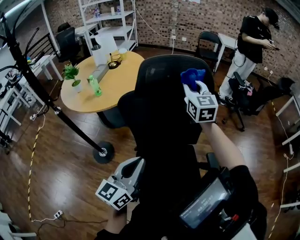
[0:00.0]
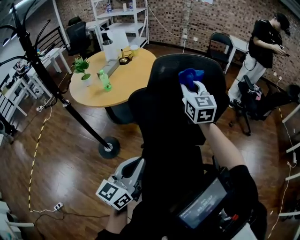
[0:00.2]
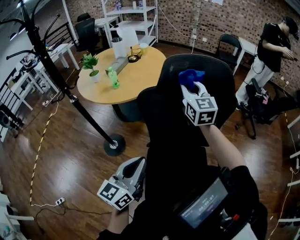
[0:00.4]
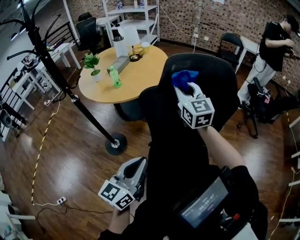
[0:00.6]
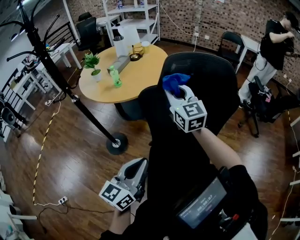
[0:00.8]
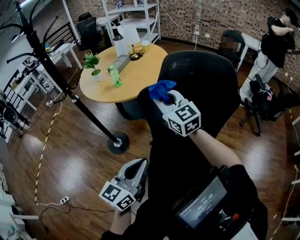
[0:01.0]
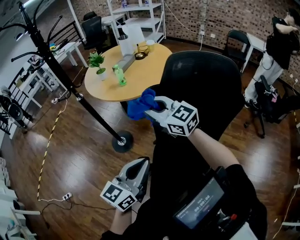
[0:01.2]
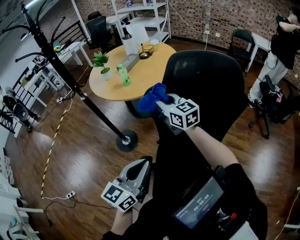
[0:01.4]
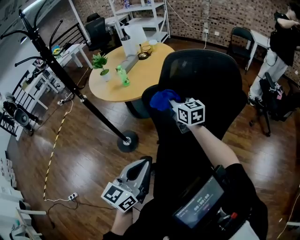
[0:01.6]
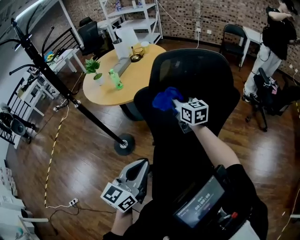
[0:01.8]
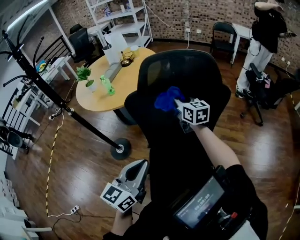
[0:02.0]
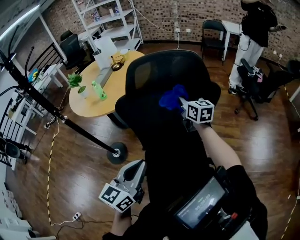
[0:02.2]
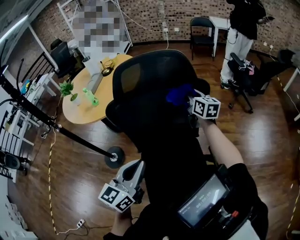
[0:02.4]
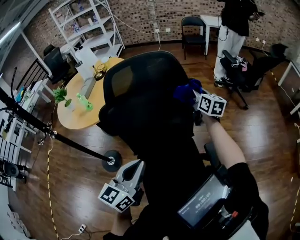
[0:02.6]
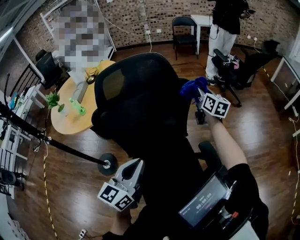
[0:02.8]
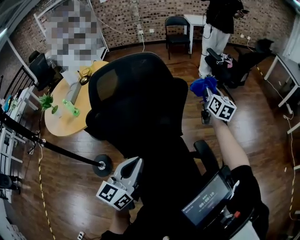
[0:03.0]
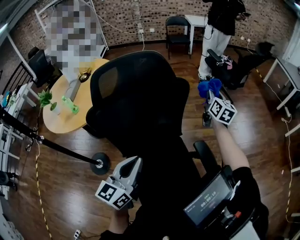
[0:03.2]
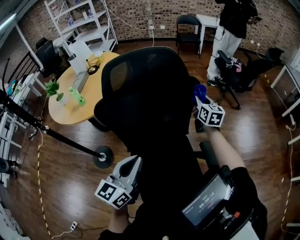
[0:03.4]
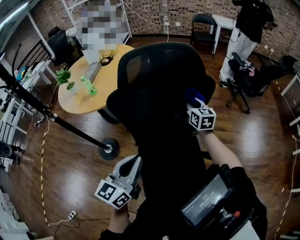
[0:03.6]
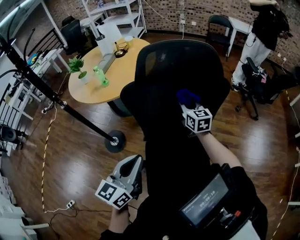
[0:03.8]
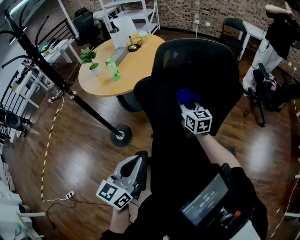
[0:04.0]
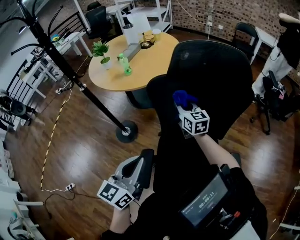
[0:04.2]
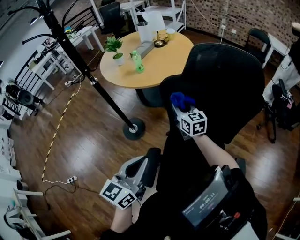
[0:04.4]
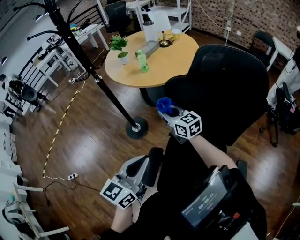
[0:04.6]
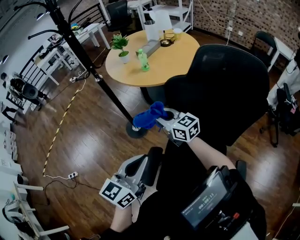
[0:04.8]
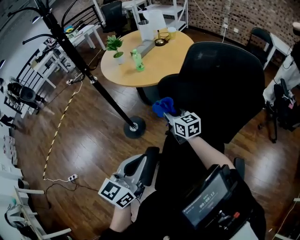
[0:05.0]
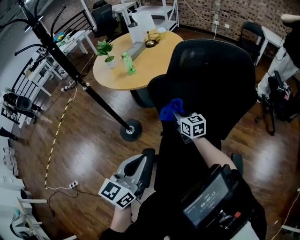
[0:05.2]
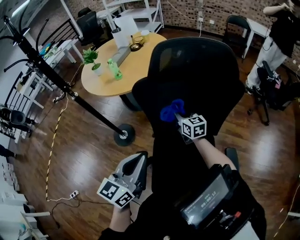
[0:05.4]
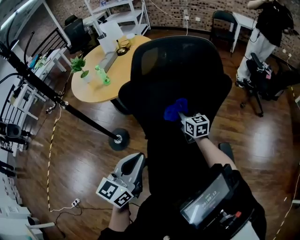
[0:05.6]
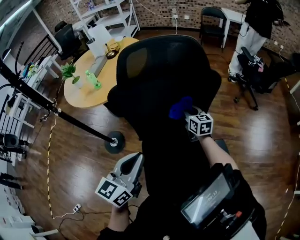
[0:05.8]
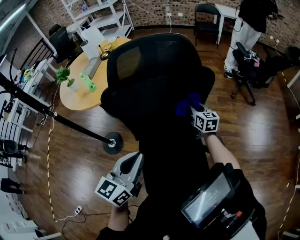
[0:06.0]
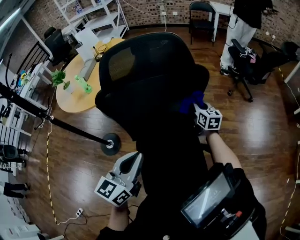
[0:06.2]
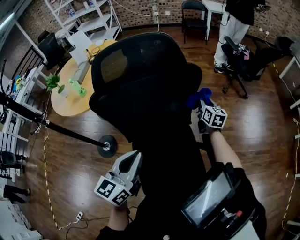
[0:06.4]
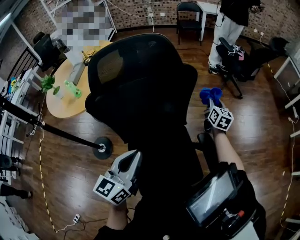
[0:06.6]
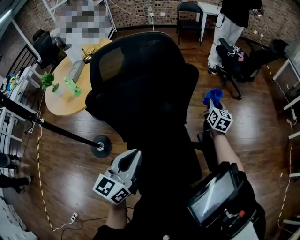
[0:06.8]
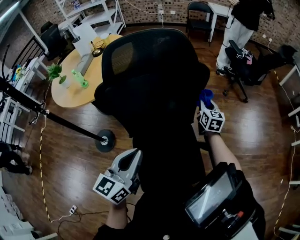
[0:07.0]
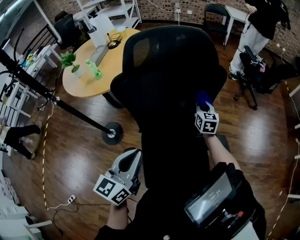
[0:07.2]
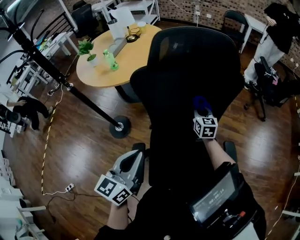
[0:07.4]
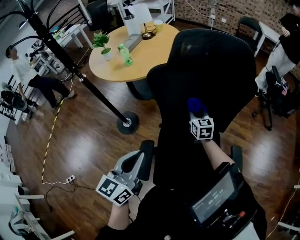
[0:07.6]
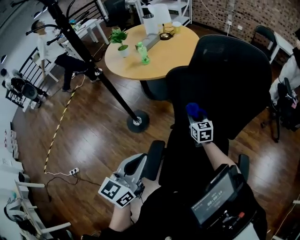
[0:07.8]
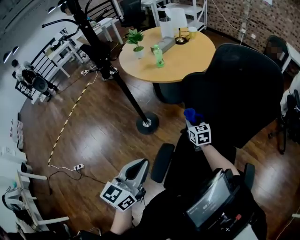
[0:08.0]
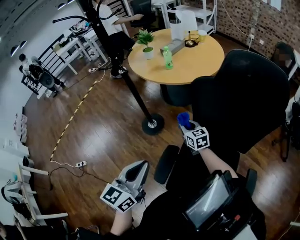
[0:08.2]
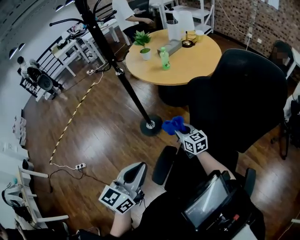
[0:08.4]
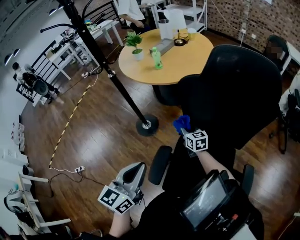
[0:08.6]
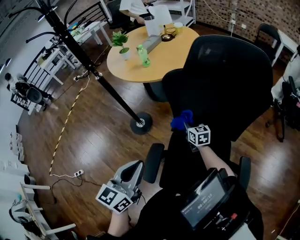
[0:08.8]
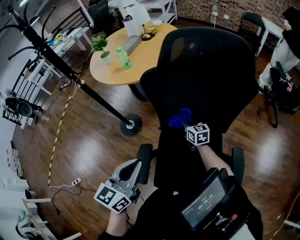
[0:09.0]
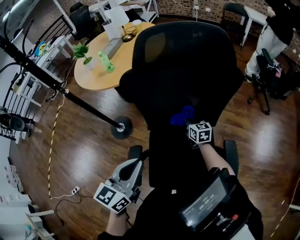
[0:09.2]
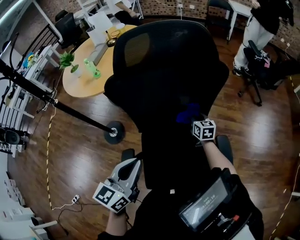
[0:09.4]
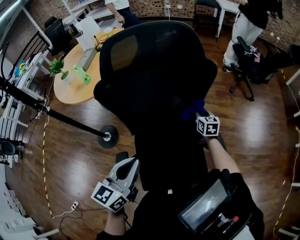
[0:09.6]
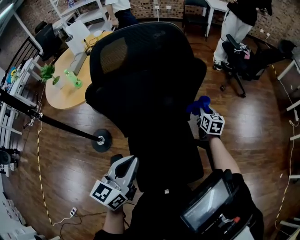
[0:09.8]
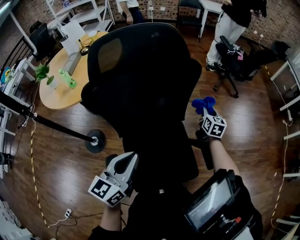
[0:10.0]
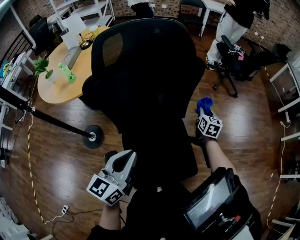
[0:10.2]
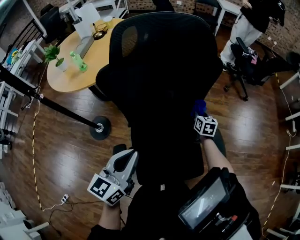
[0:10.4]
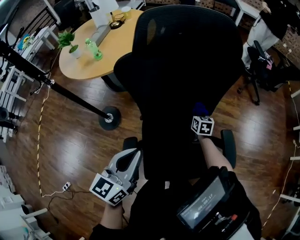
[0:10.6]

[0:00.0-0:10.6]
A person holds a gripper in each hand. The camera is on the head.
0:00.0 to 0:01.6: The right gripper moves about 25 cm, and changes its angle by roughly 40 degrees.
0:01.6 to 0:03.0: The right gripper changes place by about 50 cm, and swivels some 60 degrees; the left gripper ends up roughly 15 cm from where it was, and swivels roughly 20 degrees.
0:03.0 to 0:04.6: The left gripper changes place by about 20 cm, and changes its angle by approximately 30 degrees; the right gripper ends up roughly 60 cm from where it was, and rotates some 80 degrees.
0:04.6 to 0:06.0: The right gripper ends up approximately 40 cm from where it was, and rotates roughly 50 degrees. Meanwhile the left gripper shifts by approximately 15 cm, and swivels approximately 20 degrees.
0:06.0 to 0:07.6: The left gripper changes place by roughly 10 cm, while the right gripper ends up roughly 20 cm from where it was.
0:07.6 to 0:09.0: The right gripper moves downward, approximately 5 cm.
0:09.0 to 0:10.6: The right gripper changes its angle by approximately 30 degrees.

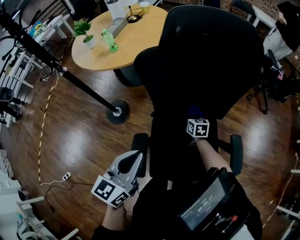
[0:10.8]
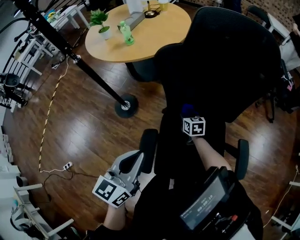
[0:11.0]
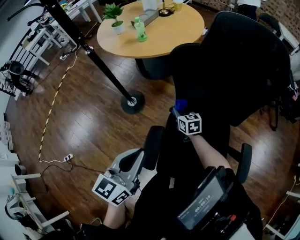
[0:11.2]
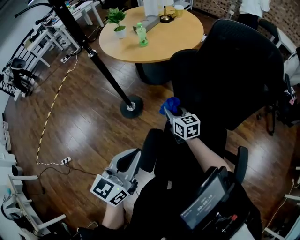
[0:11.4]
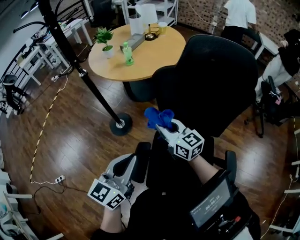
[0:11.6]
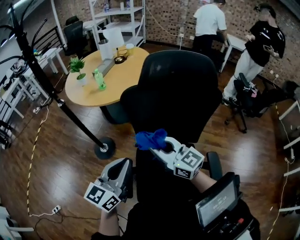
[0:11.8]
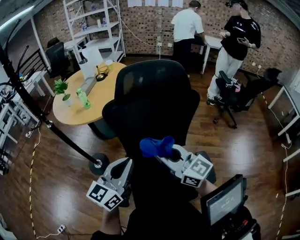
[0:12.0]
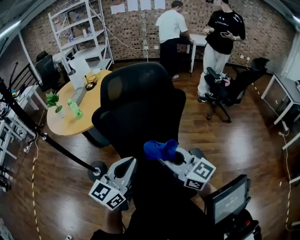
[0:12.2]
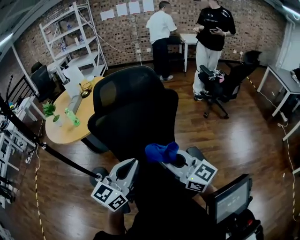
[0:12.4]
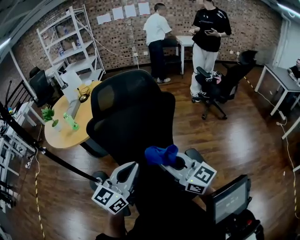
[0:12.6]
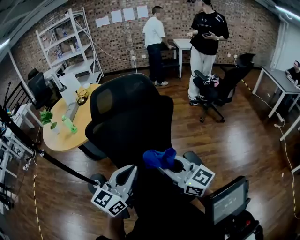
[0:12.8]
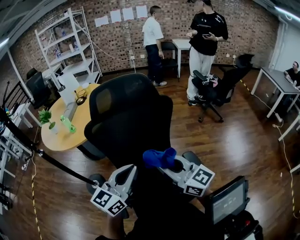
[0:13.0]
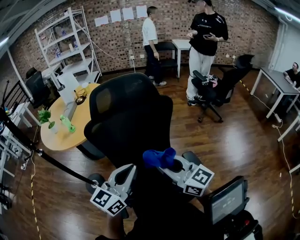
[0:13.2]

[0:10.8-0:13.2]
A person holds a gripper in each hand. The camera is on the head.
0:10.8 to 0:12.0: The left gripper is displaced upward and to the right by roughly 10 cm, and changes its angle by roughly 20 degrees, while the right gripper is displaced upward and backward by about 40 cm, and tips its fingers upward by some 50 degrees.
0:12.0 to 0:13.2: The two grippers go about 10 cm to the right.

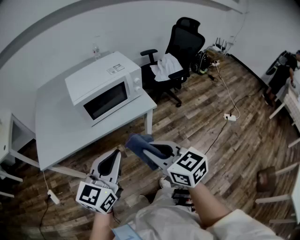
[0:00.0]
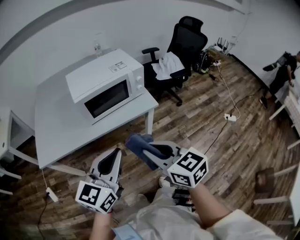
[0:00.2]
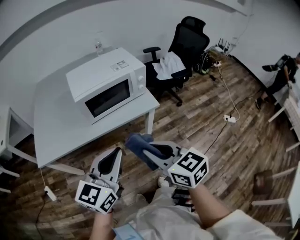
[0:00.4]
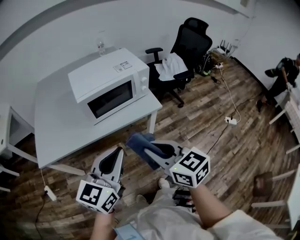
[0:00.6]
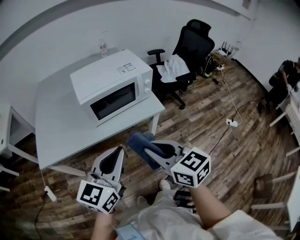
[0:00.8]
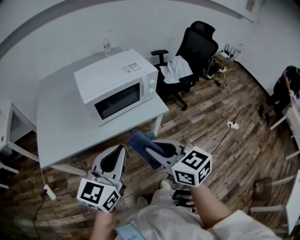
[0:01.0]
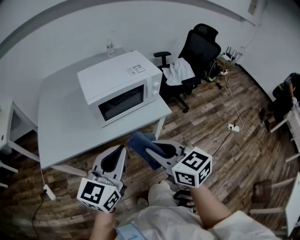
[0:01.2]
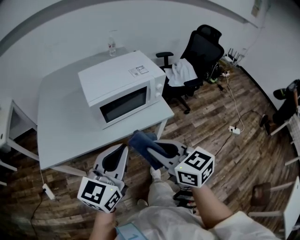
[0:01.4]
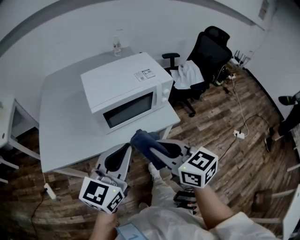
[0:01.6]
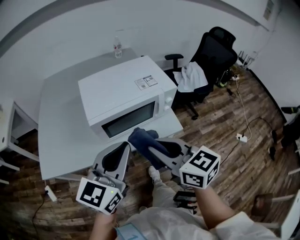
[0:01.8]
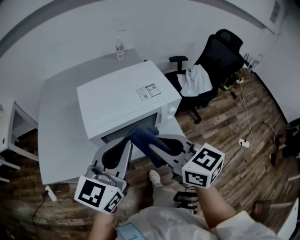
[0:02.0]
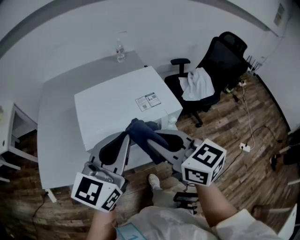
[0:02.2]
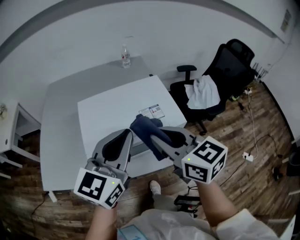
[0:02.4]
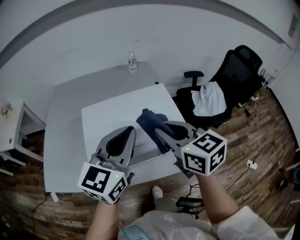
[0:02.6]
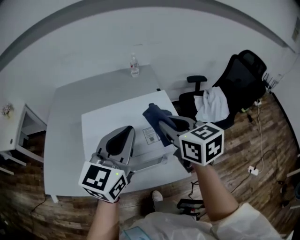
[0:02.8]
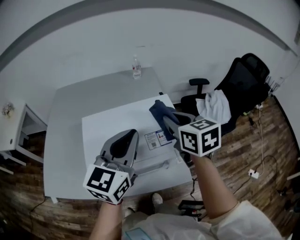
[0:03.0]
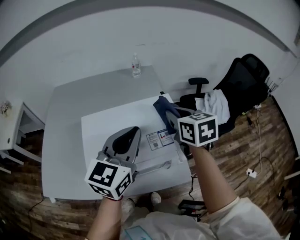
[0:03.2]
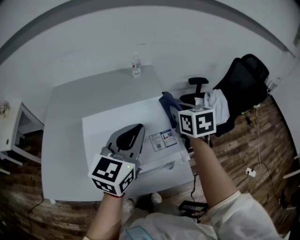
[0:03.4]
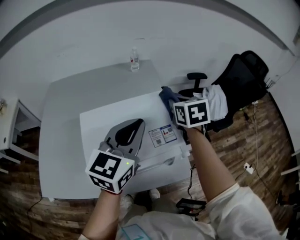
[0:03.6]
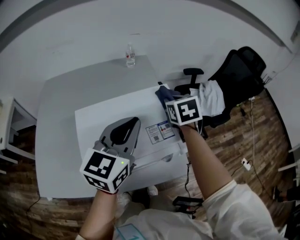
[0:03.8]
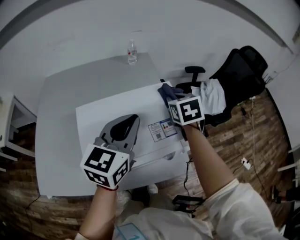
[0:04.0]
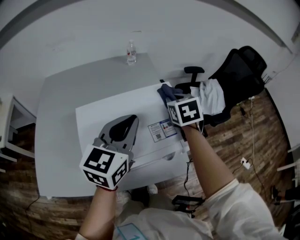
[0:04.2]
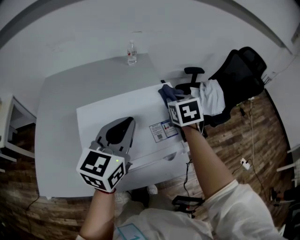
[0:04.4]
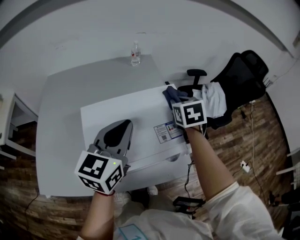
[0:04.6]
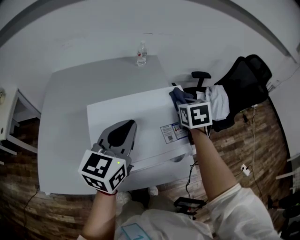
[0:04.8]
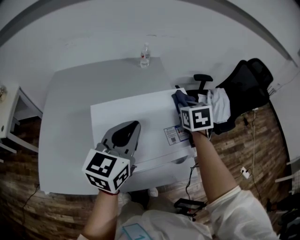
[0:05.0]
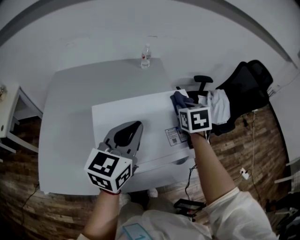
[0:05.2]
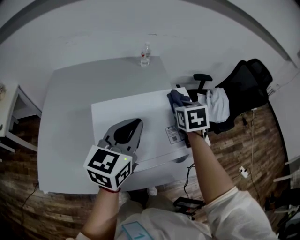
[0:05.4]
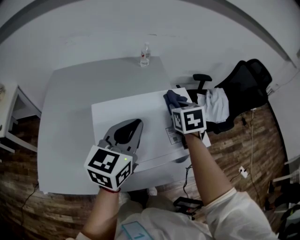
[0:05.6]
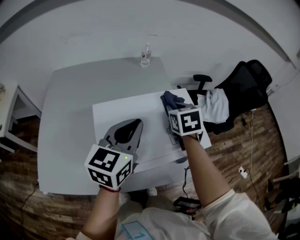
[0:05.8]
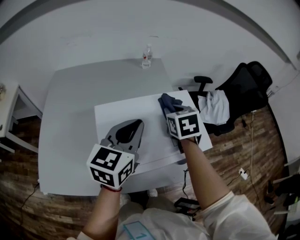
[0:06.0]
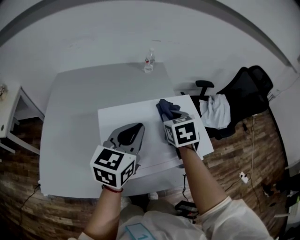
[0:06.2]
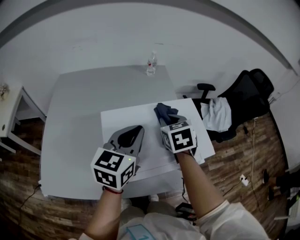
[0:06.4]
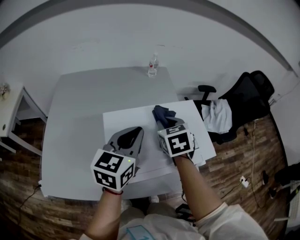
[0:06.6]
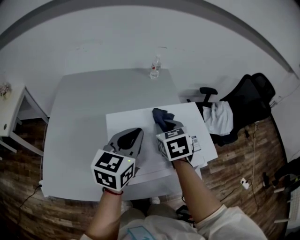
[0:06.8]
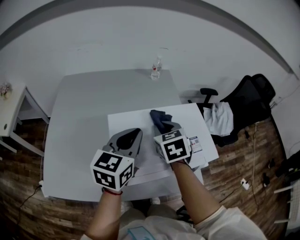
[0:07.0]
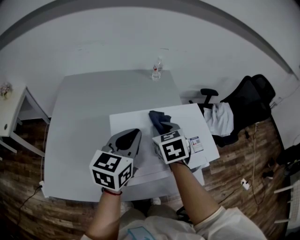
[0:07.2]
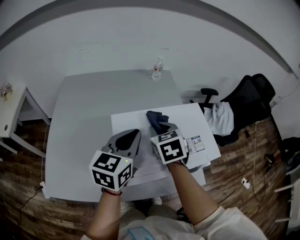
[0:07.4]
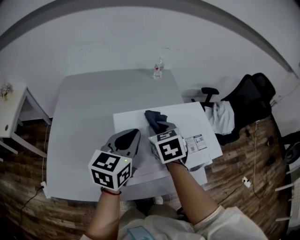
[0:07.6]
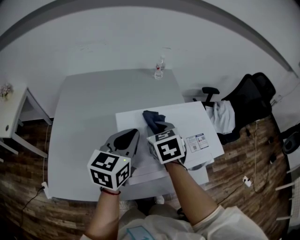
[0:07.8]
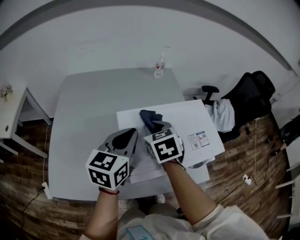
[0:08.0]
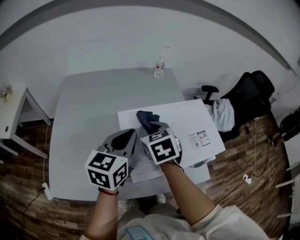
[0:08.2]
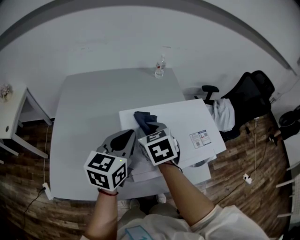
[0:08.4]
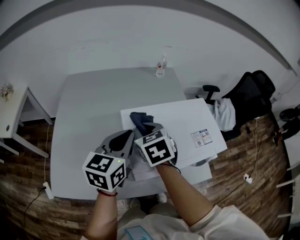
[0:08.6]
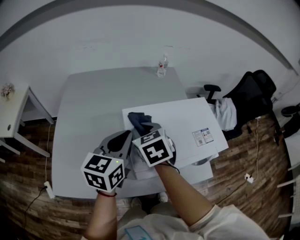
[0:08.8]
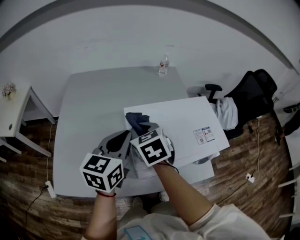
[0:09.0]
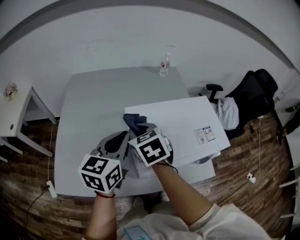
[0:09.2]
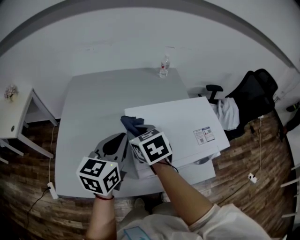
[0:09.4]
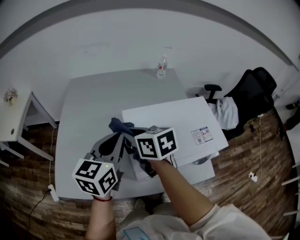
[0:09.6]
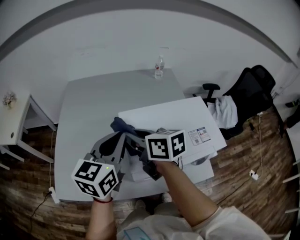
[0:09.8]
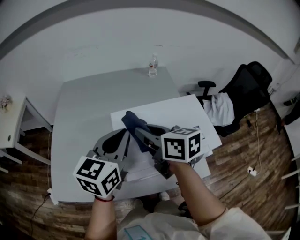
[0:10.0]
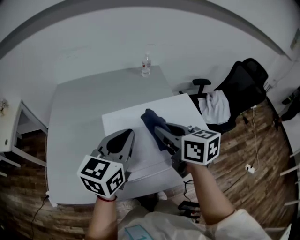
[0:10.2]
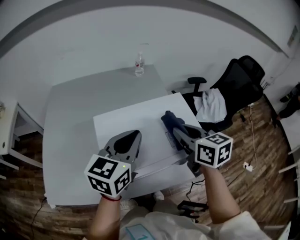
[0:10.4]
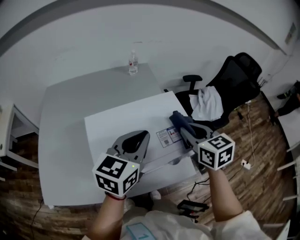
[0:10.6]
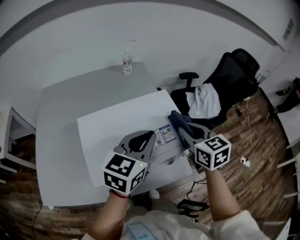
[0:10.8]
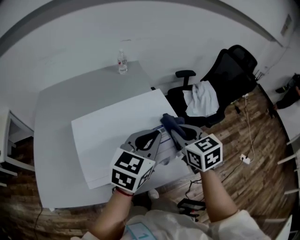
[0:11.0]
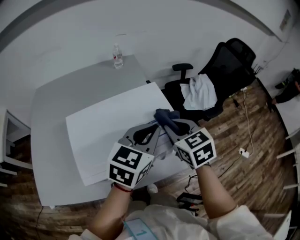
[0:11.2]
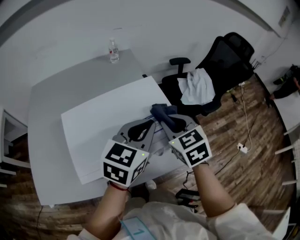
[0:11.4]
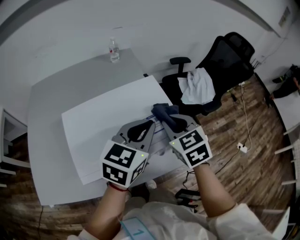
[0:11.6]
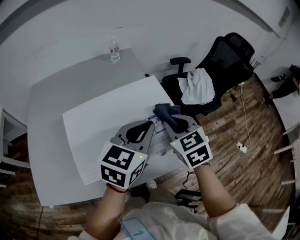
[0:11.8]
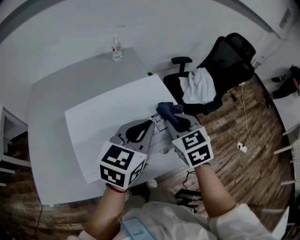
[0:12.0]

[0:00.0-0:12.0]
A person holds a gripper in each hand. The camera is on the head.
0:00.0 to 0:01.6: The left gripper heads forward, covering about 15 cm; the right gripper shifts some 15 cm forward and to the left.
0:01.6 to 0:03.0: Both grippers move forward, about 35 cm.
0:03.0 to 0:04.4: The right gripper heads forward and downward, covering about 10 cm, and turns by approximately 30 degrees. Meanwhile the left gripper ends up roughly 5 cm from where it was.
0:04.4 to 0:06.0: The left gripper travels to the left by approximately 5 cm, while the right gripper goes some 10 cm to the left.
0:06.0 to 0:07.6: The left gripper travels to the left by about 10 cm, while the right gripper goes roughly 15 cm to the left and backward.
0:07.6 to 0:09.0: The right gripper heads to the left, covering about 10 cm; the left gripper heads to the left, covering about 5 cm.
0:09.0 to 0:10.4: The right gripper heads to the right, covering roughly 25 cm, and swivels roughly 30 degrees, while the left gripper moves to the right, some 15 cm.
0:10.4 to 0:12.0: The right gripper is displaced to the right and downward by approximately 10 cm, and changes its angle by roughly 30 degrees. The left gripper moves to the right, roughly 15 cm.
